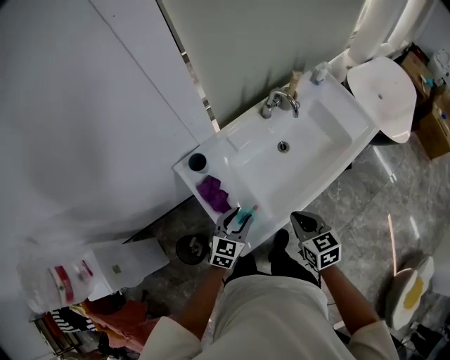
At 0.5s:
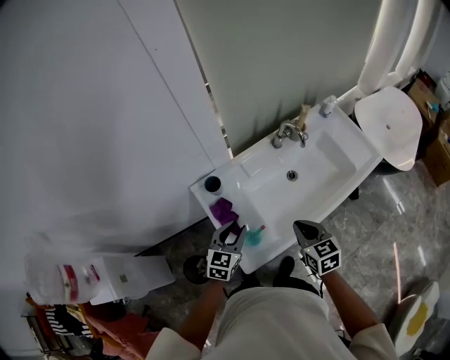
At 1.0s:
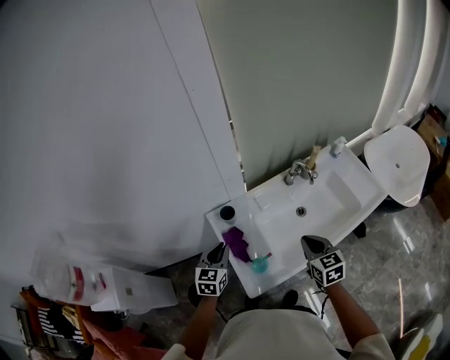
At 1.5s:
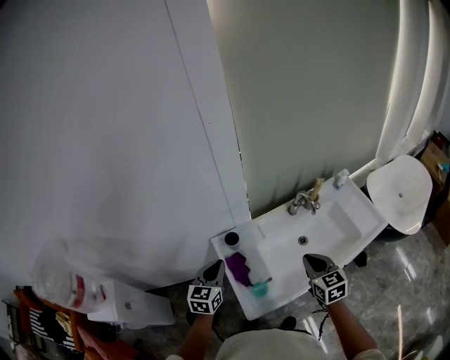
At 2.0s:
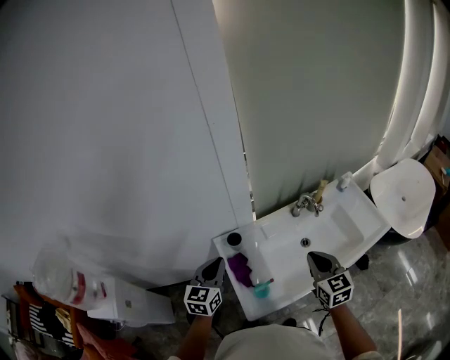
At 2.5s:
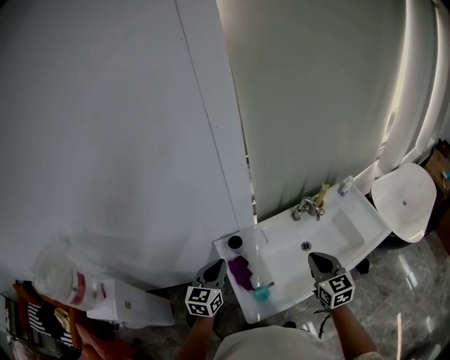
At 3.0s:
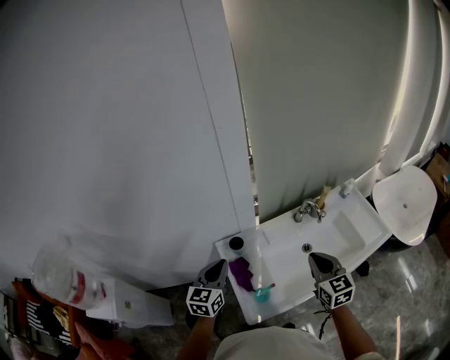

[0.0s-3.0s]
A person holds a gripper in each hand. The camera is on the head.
0.0s to 1.5s: The left gripper shifts approximately 25 cm upward and to the left, changes its angle by roughly 30 degrees, and closes its fingers. Meanwhile the right gripper heads upward and forward, covering approximately 15 cm.
1.5s to 3.0s: The grippers move only a little.

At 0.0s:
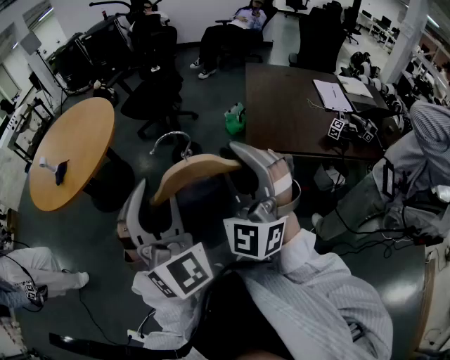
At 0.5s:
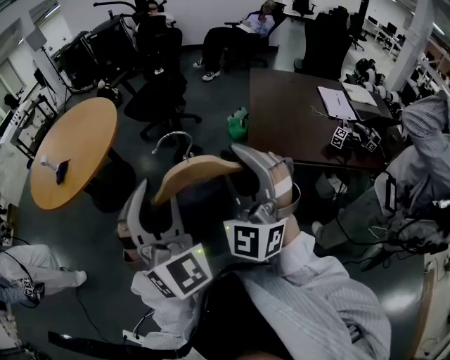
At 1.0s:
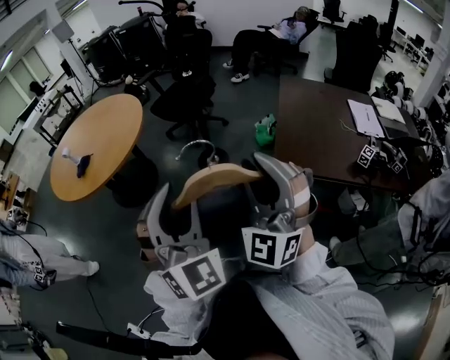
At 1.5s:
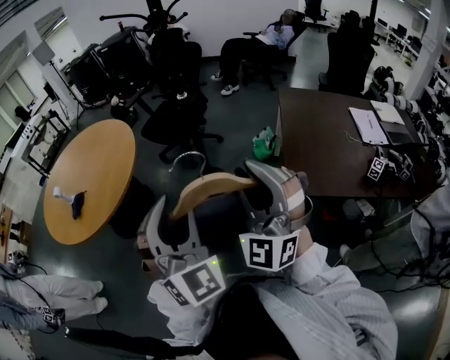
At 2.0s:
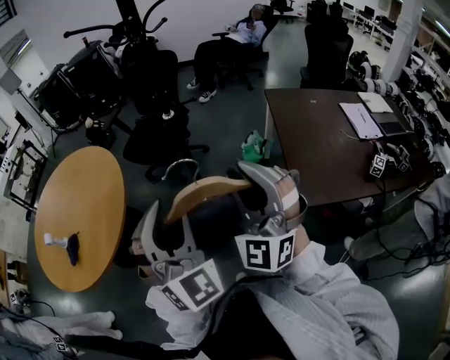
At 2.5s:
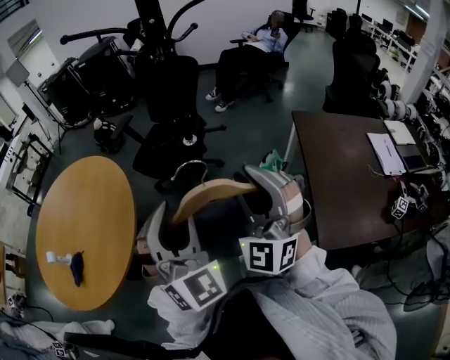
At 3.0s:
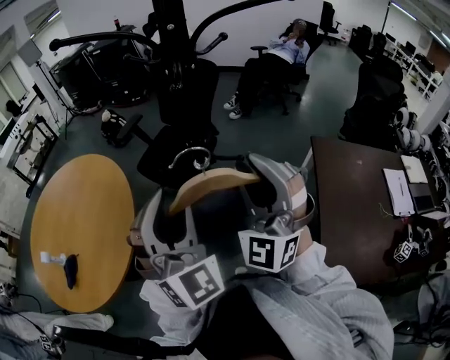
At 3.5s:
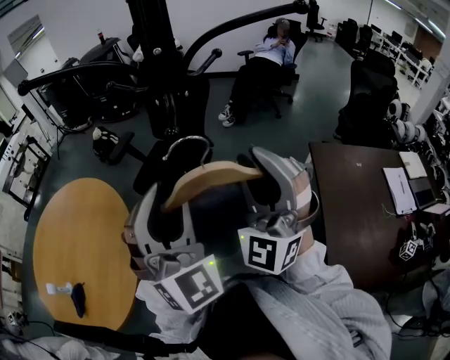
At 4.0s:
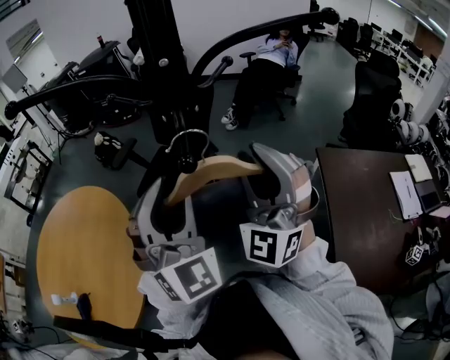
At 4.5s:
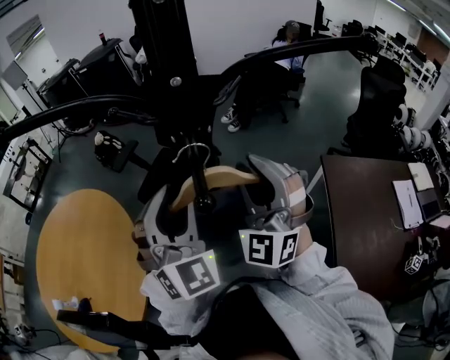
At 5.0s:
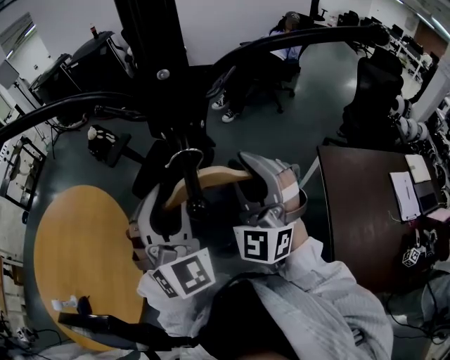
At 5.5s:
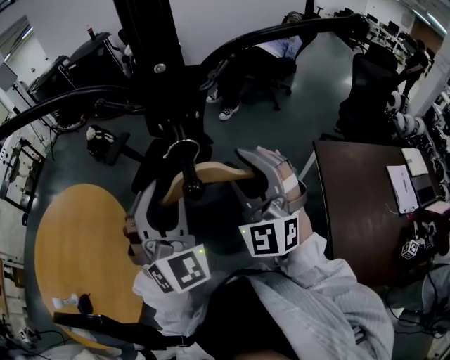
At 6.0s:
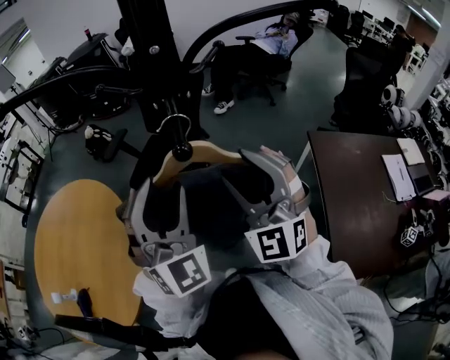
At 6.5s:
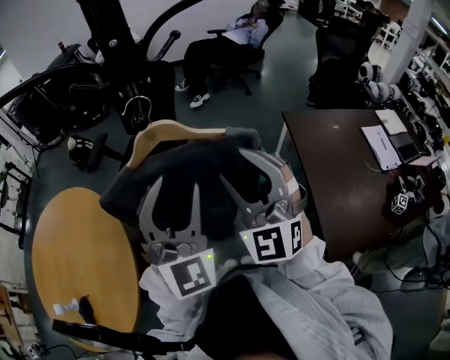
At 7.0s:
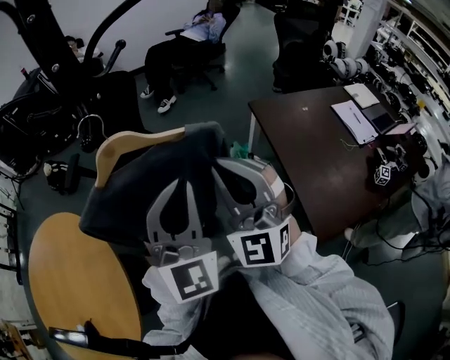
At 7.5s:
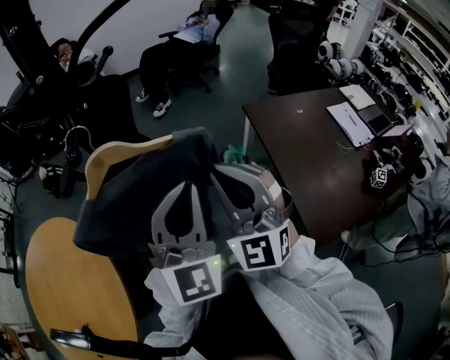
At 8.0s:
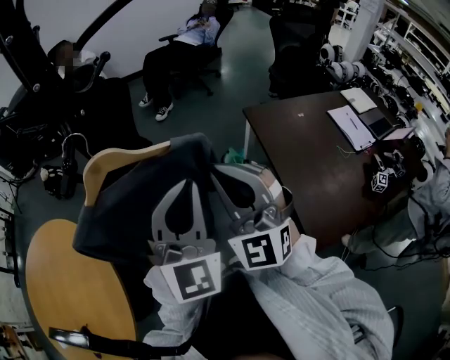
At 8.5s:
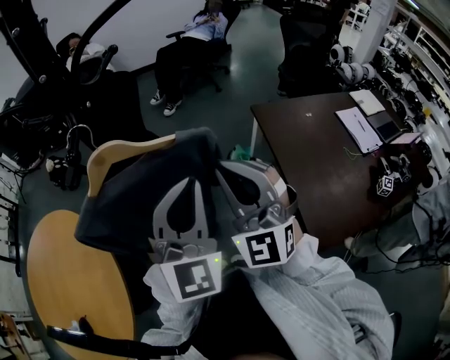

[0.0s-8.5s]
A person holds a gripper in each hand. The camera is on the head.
0.0s to 2.0s: The two grippers go about 40 cm forward.
2.0s to 4.0s: The pair of grippers is taken forward, roughly 50 cm.
4.0s to 6.5s: The right gripper moves backward and downward, some 10 cm, and opens; the left gripper heads backward, covering roughly 10 cm, and changes its angle by some 20 degrees.
6.5s to 8.5s: The grippers both shift to the right by about 10 cm. The right gripper closes its fingers. Meanwhile the left gripper closes up.

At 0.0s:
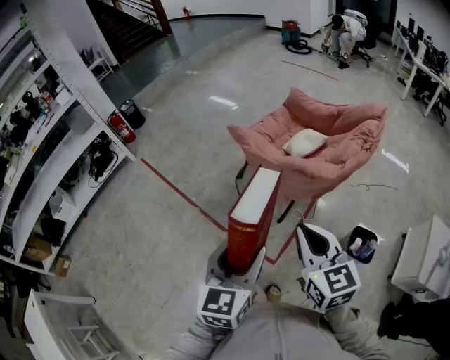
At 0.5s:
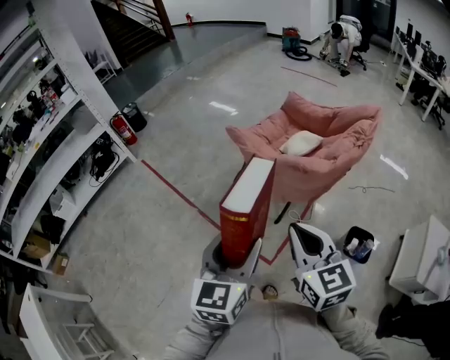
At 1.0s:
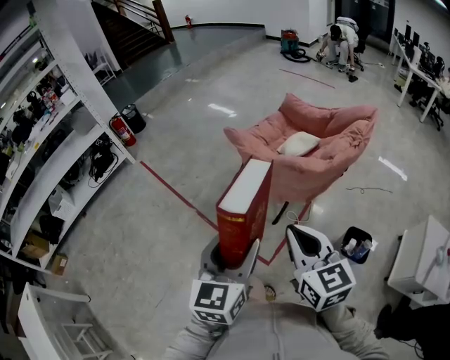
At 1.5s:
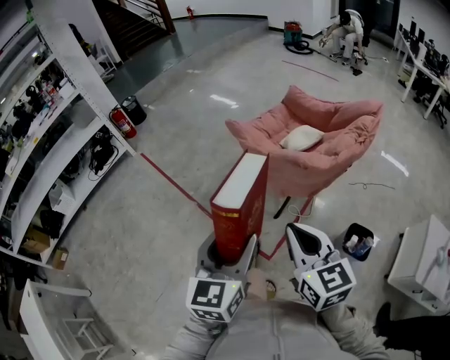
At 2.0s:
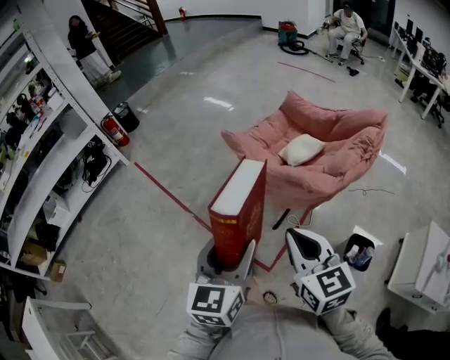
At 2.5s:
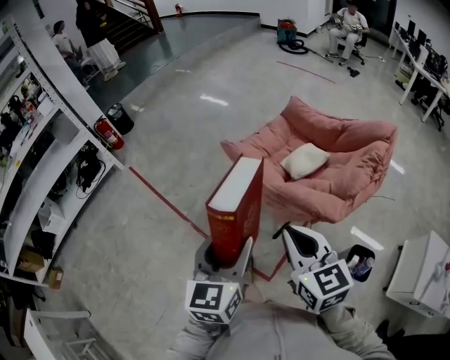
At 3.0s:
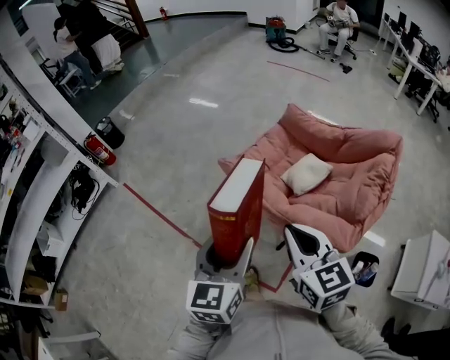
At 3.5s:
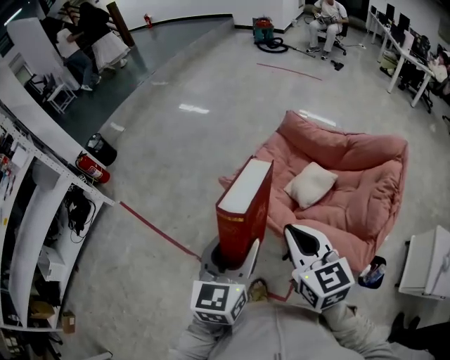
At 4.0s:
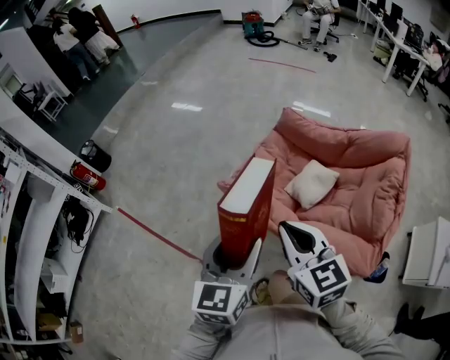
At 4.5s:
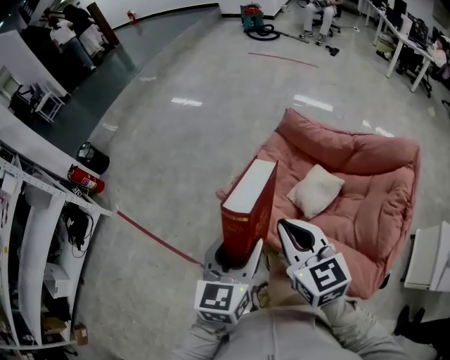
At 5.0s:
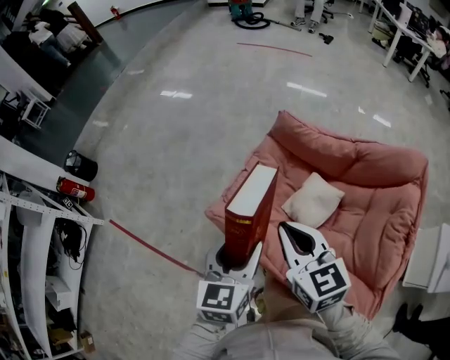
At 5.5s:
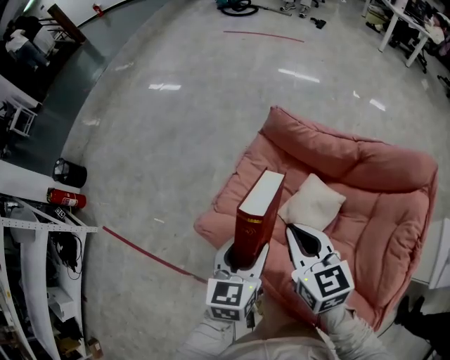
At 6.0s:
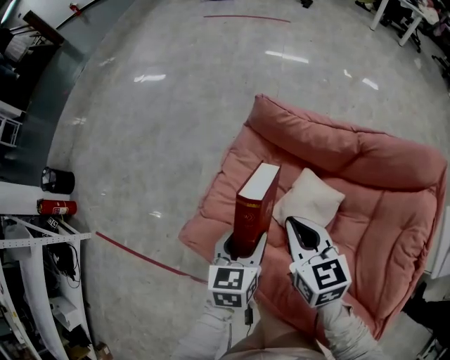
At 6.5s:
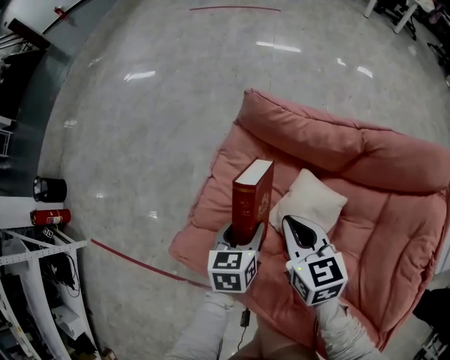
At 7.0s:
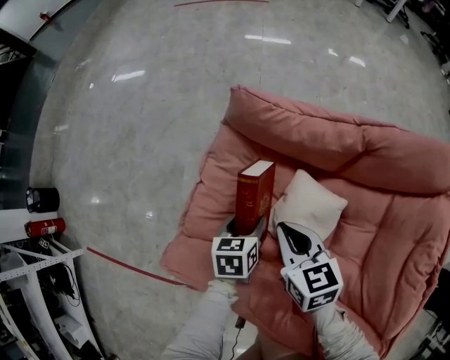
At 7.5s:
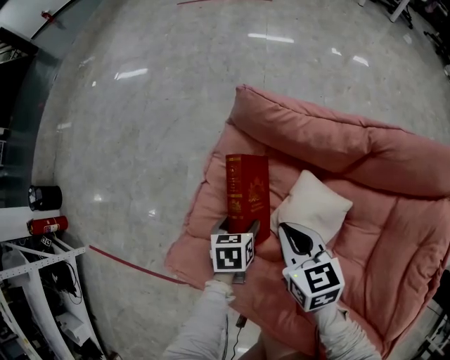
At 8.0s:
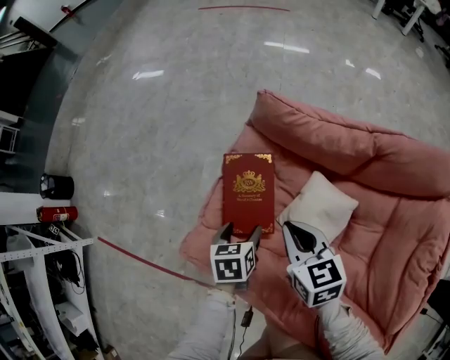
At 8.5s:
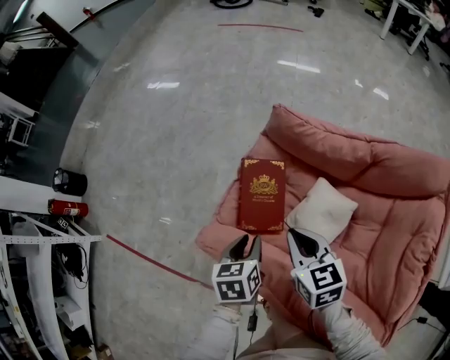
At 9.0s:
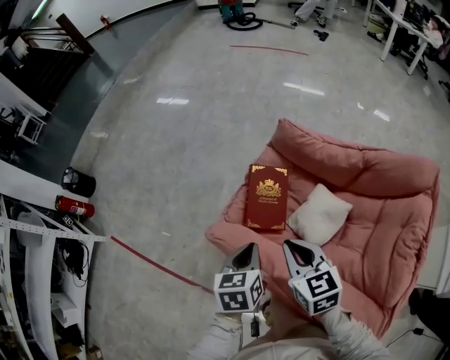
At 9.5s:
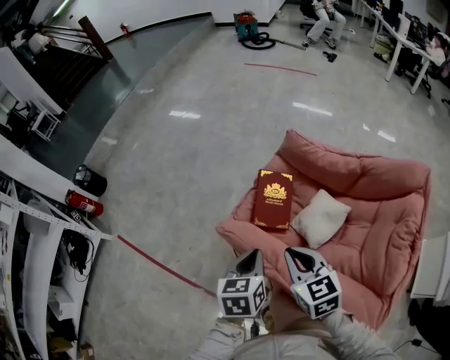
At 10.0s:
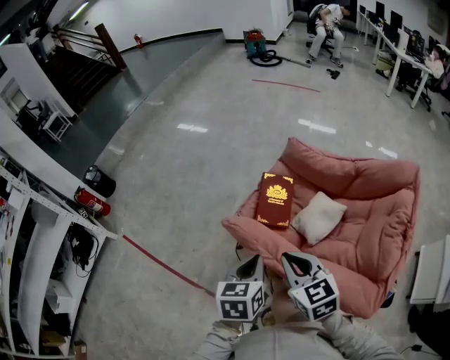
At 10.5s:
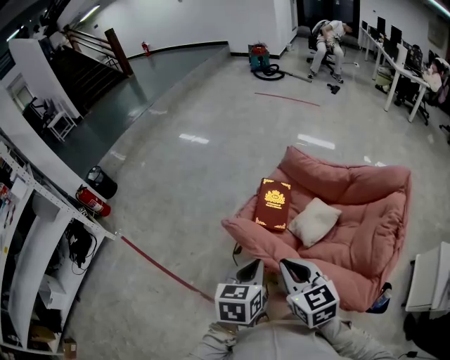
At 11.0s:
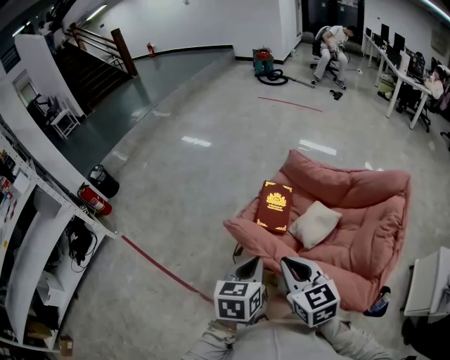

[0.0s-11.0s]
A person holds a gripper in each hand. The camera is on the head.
0.0s to 2.0s: The left gripper is displaced forward by about 5 cm.
2.0s to 3.5s: Both grippers move forward, about 30 cm.
3.5s to 5.5s: Both grippers move forward and downward, about 30 cm. The left gripper rotates about 20 degrees.
5.5s to 7.5s: Both grippers travel together downward and forward, roughly 25 cm. The left gripper rotates some 30 degrees.
7.5s to 9.0s: The left gripper travels upward and backward by approximately 25 cm, swivels some 20 degrees, and closes up; the right gripper moves upward, backward and to the left, some 20 cm.
9.0s to 11.0s: Both grippers travel together backward and upward, approximately 20 cm.

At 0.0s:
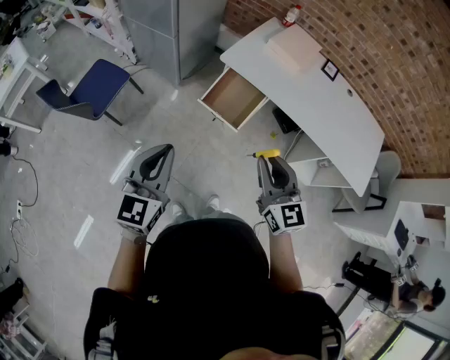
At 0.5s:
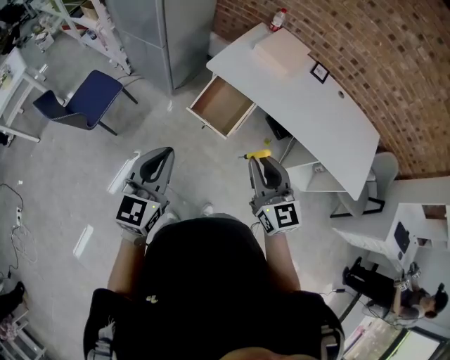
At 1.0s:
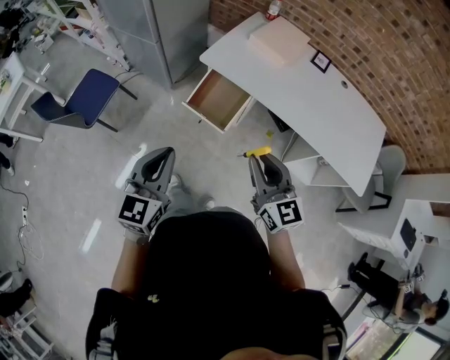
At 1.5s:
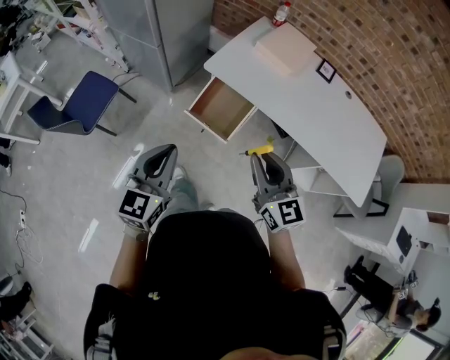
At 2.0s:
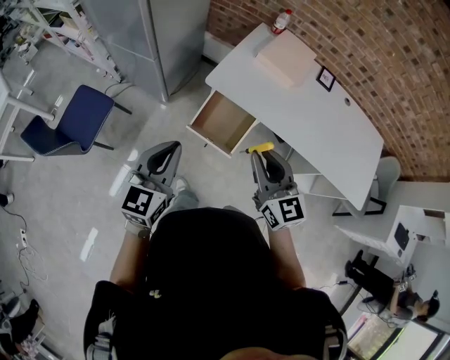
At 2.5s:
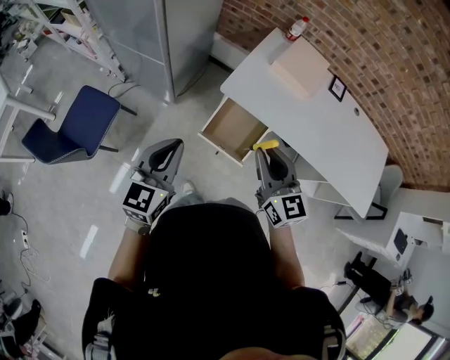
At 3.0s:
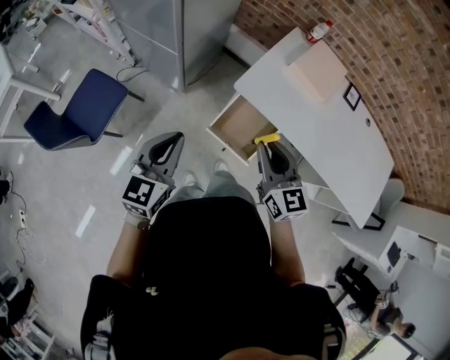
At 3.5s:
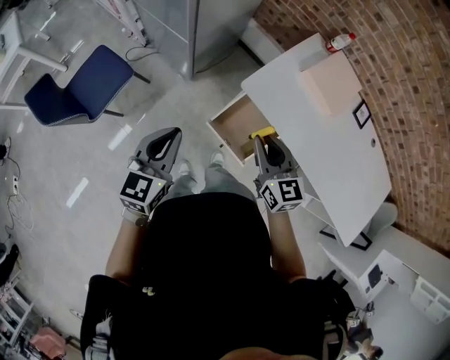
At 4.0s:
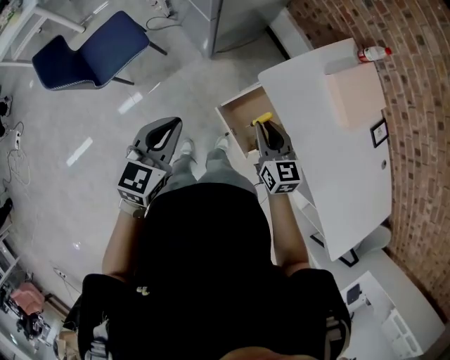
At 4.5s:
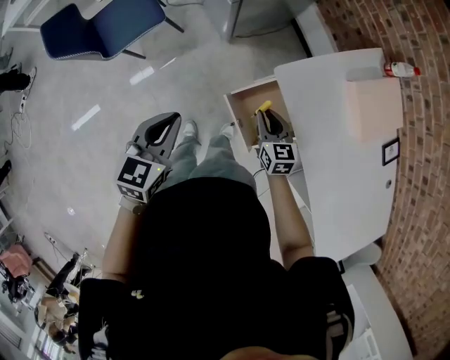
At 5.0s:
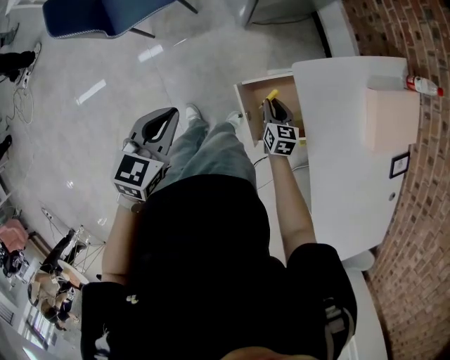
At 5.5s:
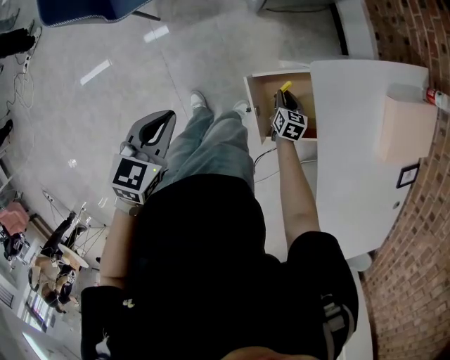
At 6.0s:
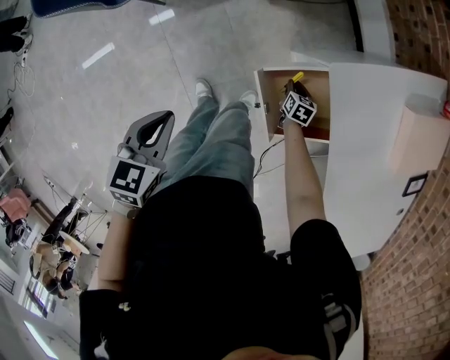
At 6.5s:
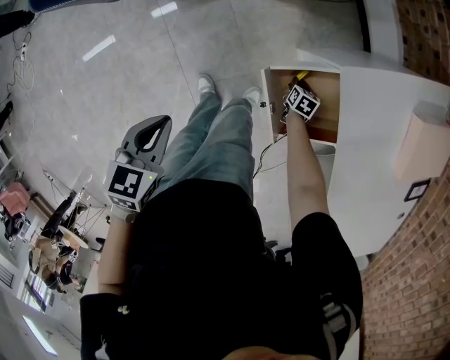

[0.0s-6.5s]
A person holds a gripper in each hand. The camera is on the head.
0.0s to 2.0s: Both grippers travel together forward, some 20 cm.
2.0s to 4.5s: The right gripper heads downward, covering roughly 30 cm, and turns by roughly 40 degrees, while the left gripper heads downward, covering approximately 15 cm, and changes its angle by approximately 40 degrees.
4.5s to 6.5s: The left gripper goes about 15 cm downward and to the left, and rotates some 20 degrees. The right gripper travels downward by approximately 35 cm, and tips its fingers downward by approximately 30 degrees.
